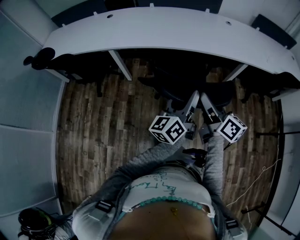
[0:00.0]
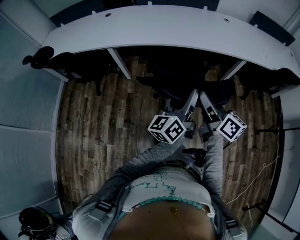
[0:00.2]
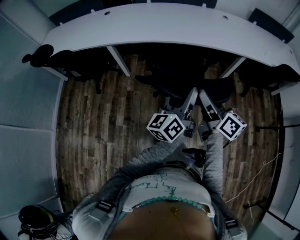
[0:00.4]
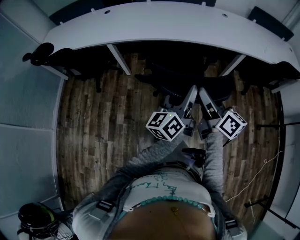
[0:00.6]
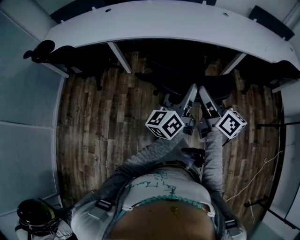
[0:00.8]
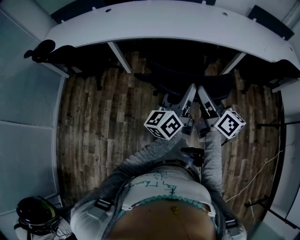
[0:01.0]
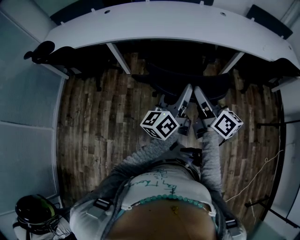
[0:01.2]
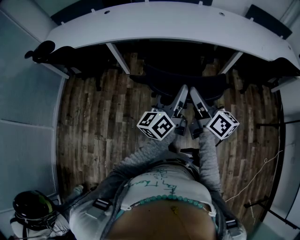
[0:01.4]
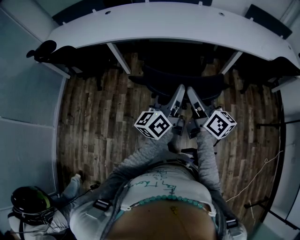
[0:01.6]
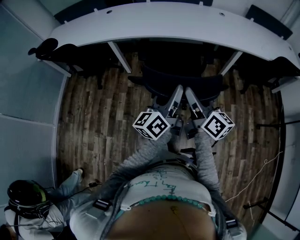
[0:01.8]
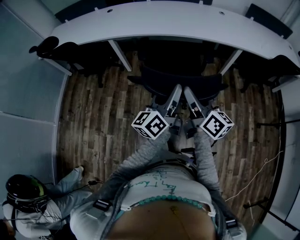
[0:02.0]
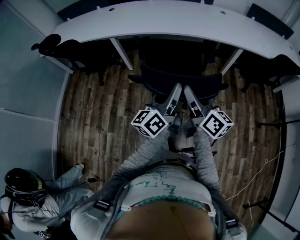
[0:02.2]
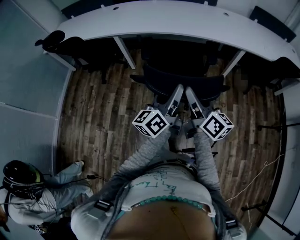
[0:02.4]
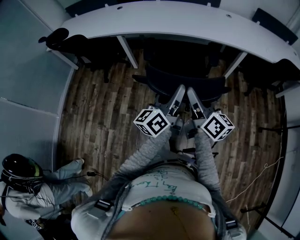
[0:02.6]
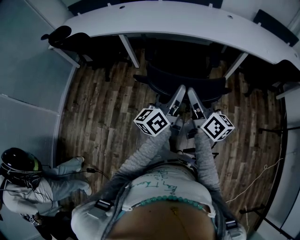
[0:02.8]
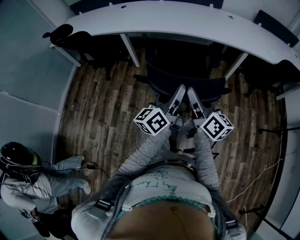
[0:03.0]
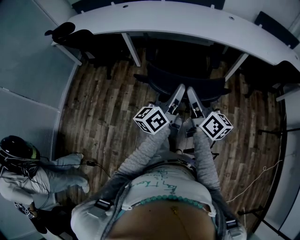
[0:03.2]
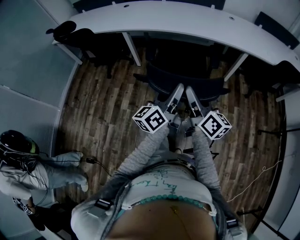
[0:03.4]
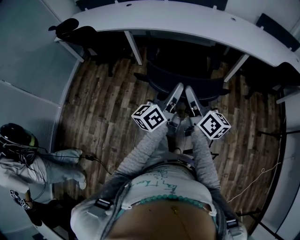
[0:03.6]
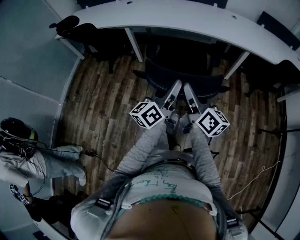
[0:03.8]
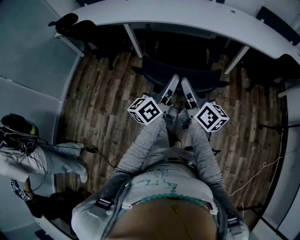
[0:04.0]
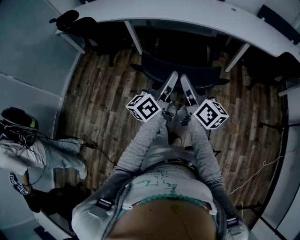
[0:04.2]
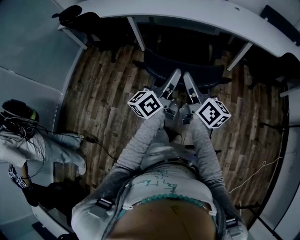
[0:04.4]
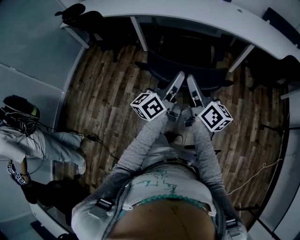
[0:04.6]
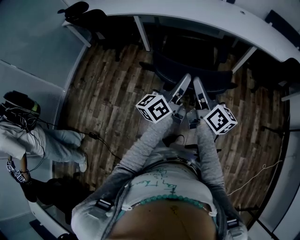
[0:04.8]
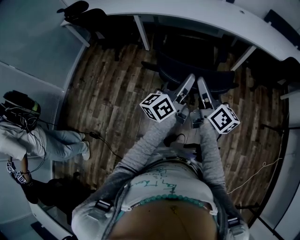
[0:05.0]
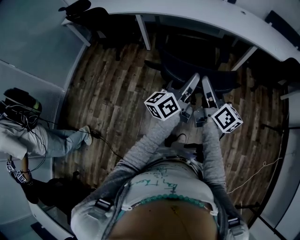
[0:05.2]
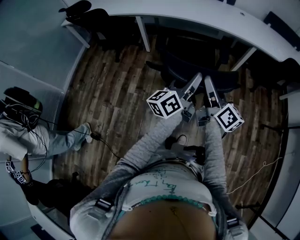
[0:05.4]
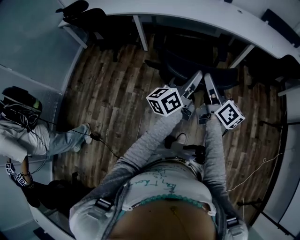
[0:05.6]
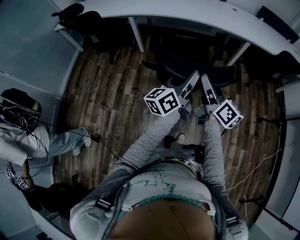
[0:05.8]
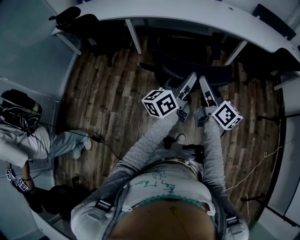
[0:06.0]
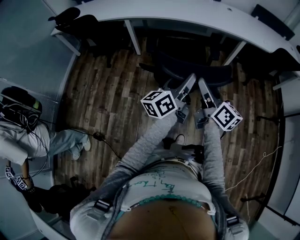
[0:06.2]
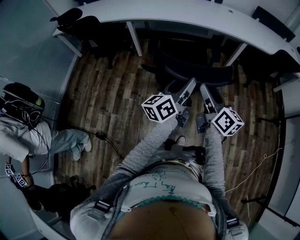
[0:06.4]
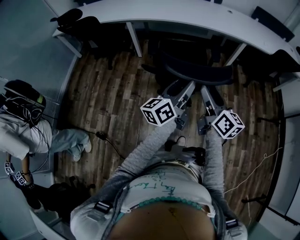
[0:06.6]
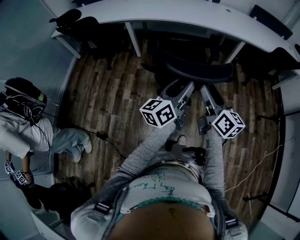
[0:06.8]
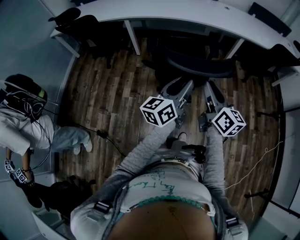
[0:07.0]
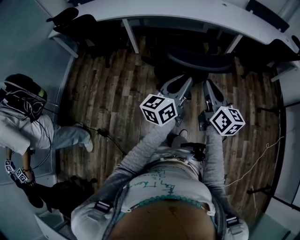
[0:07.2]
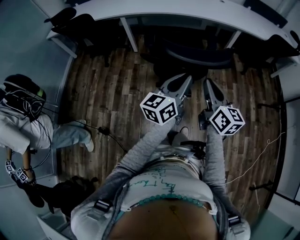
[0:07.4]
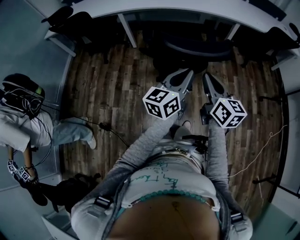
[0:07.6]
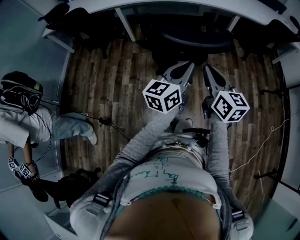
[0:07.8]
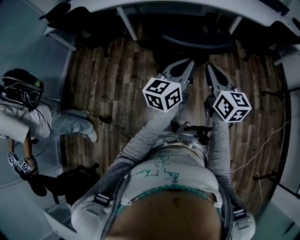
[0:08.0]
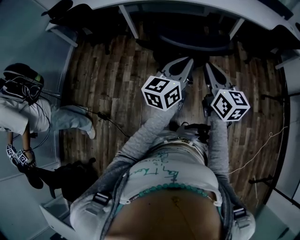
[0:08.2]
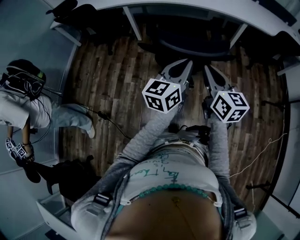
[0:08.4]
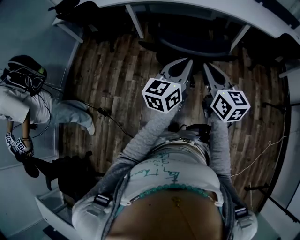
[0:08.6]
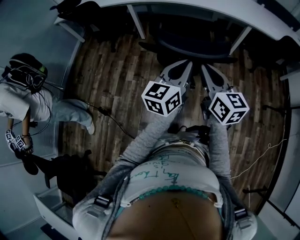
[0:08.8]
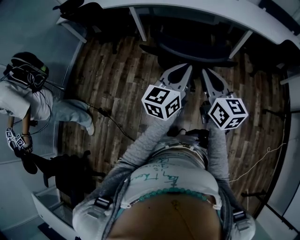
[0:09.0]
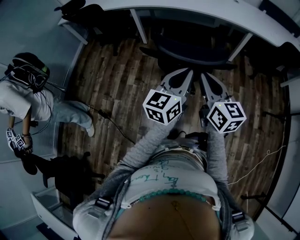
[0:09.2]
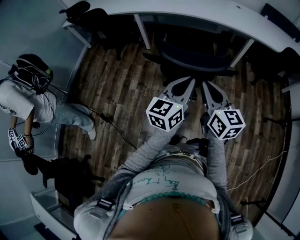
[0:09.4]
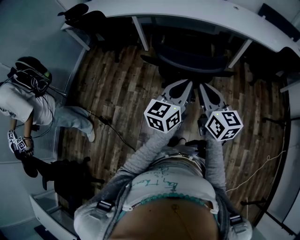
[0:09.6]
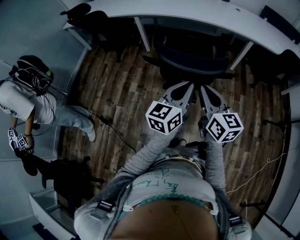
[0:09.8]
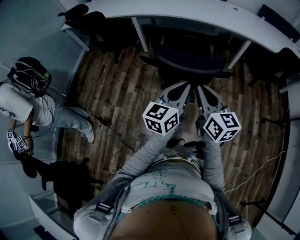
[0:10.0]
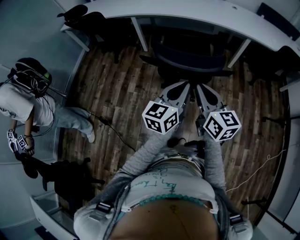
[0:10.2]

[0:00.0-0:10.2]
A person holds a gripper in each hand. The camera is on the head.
0:00.0 to 0:01.4: Both grippers travel together backward, about 10 cm.
0:01.4 to 0:03.0: The two grippers go approximately 10 cm backward.
0:03.0 to 0:04.4: Both grippers move backward, roughly 5 cm.
0:04.4 to 0:05.8: There are only small adjustments of the grippers.
0:05.8 to 0:07.2: Both grippers travel together backward, some 10 cm. The right gripper closes up; the left gripper closes its fingers.
0:07.2 to 0:08.8: The grippers stay close to where they were, moving slightly.
0:08.8 to 0:10.2: The grippers stay close to where they were, moving slightly.

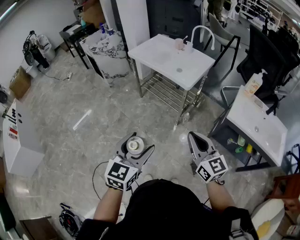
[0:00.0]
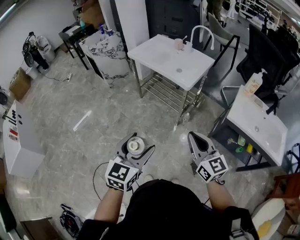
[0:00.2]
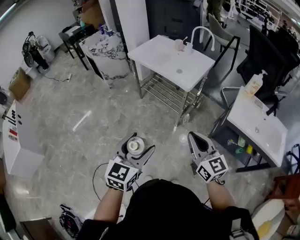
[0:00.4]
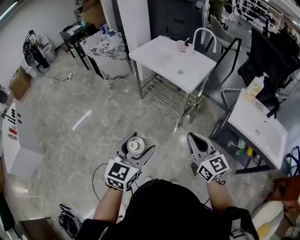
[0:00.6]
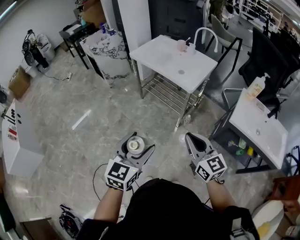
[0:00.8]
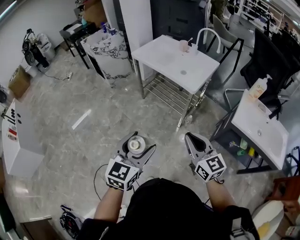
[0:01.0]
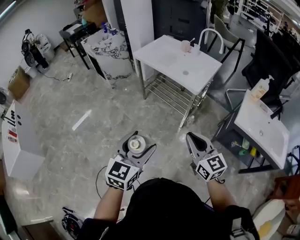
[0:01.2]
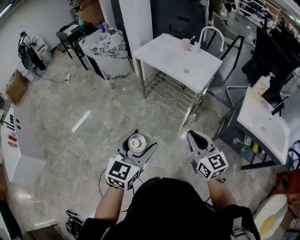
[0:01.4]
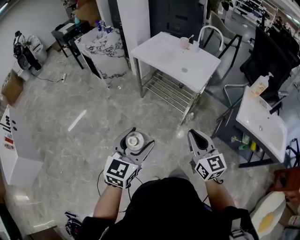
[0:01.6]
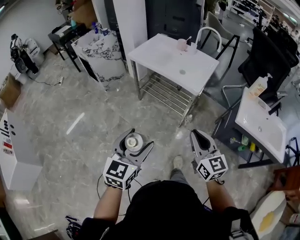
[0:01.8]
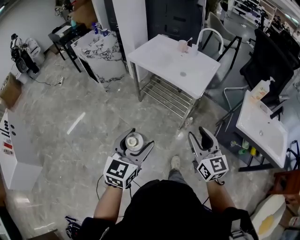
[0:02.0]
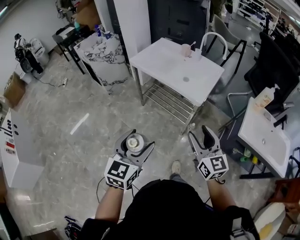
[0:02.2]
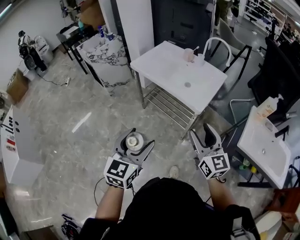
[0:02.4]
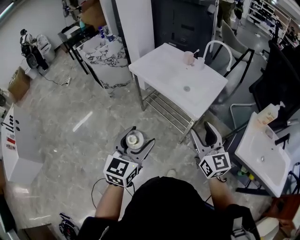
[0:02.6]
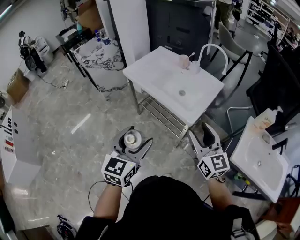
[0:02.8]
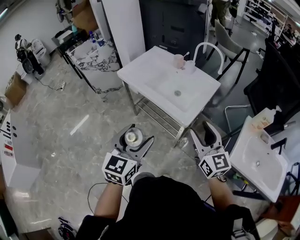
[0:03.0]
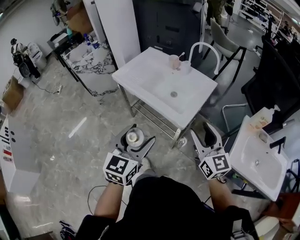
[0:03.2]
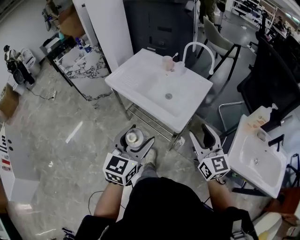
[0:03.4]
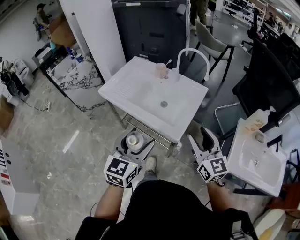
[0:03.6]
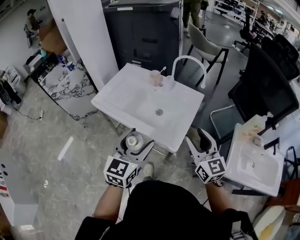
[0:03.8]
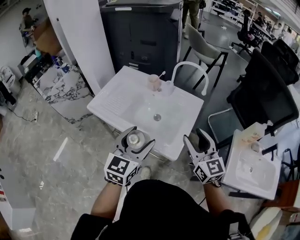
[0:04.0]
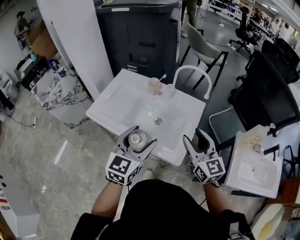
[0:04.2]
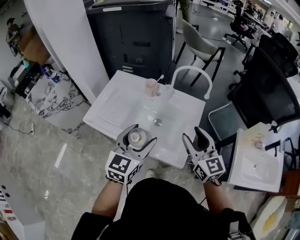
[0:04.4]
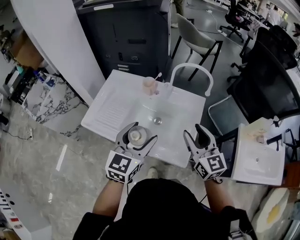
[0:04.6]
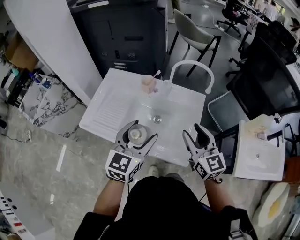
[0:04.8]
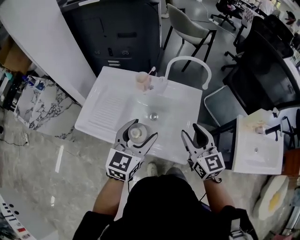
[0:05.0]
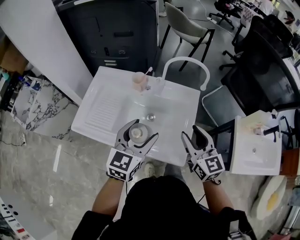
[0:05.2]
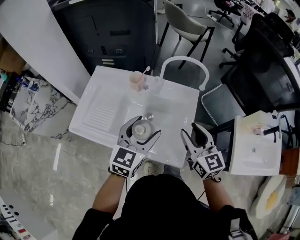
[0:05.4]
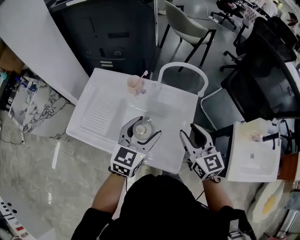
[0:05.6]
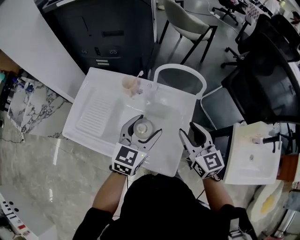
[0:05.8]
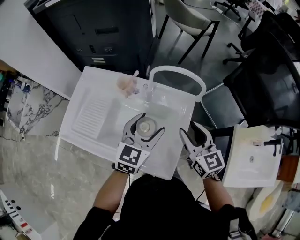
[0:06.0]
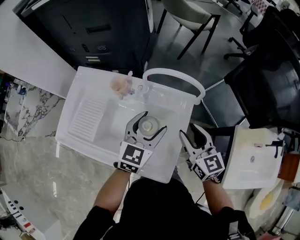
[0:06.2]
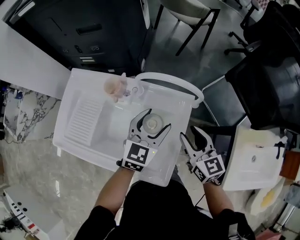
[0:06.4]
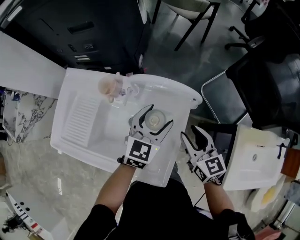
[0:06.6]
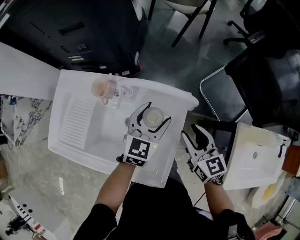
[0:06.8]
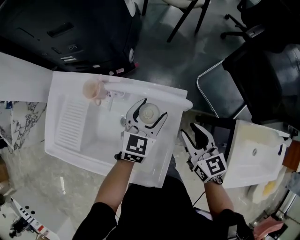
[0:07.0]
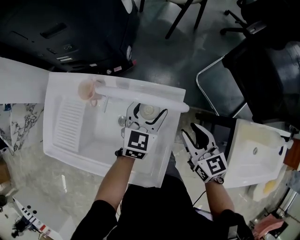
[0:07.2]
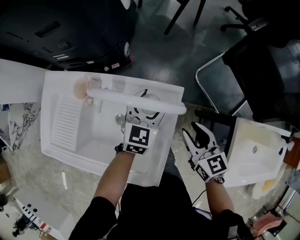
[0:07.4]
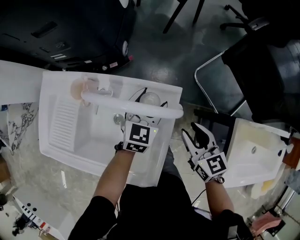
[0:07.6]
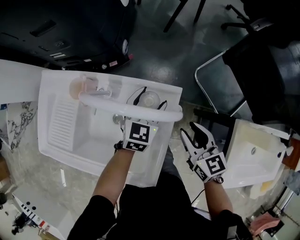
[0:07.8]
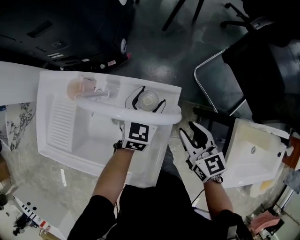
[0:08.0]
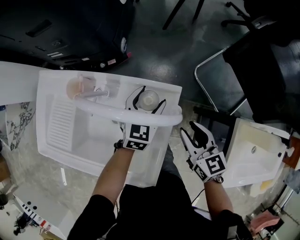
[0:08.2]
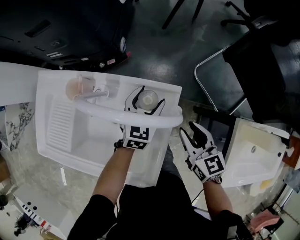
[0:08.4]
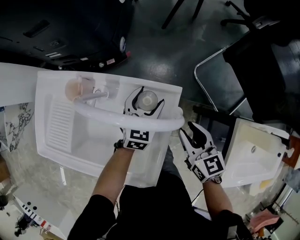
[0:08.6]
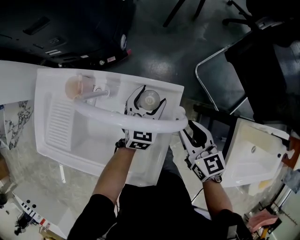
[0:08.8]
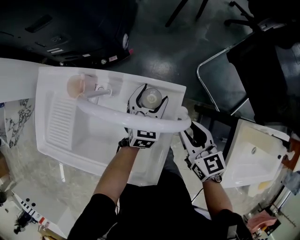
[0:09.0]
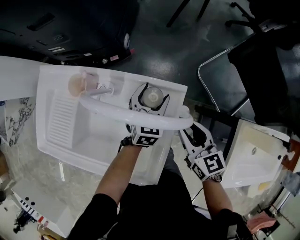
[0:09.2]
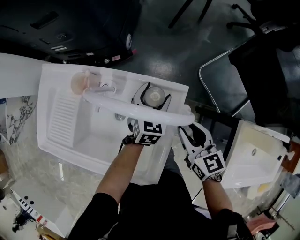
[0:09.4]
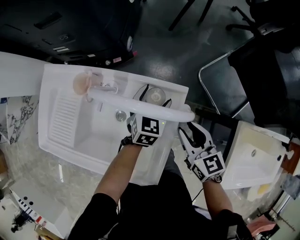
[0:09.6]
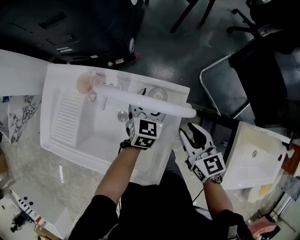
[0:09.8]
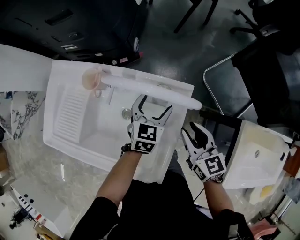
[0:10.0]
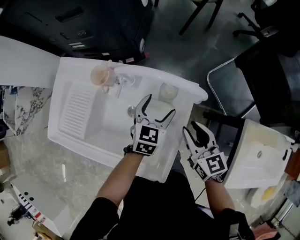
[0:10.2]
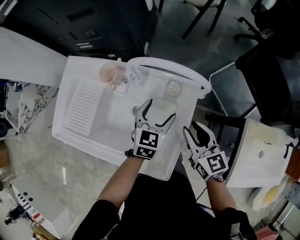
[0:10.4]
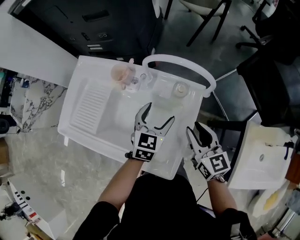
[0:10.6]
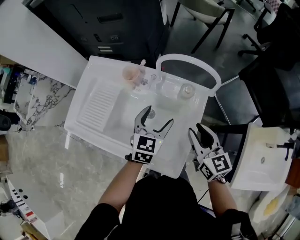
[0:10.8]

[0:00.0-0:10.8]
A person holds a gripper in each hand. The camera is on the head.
0:00.0 to 0:01.6: Both grippers move to the left and forward, some 10 cm.
0:01.6 to 0:03.0: The grippers both shift forward and to the right by approximately 30 cm. The right gripper opens.
0:03.0 to 0:04.6: Both grippers move forward, about 30 cm. The left gripper changes its angle by approximately 20 degrees. Meanwhile the right gripper swivels roughly 20 degrees.
0:04.6 to 0:06.2: The left gripper goes approximately 25 cm forward, to the right and downward. The right gripper moves forward, downward and to the right, about 15 cm.
0:06.2 to 0:07.8: The right gripper goes roughly 15 cm downward and to the right; the left gripper travels downward, forward and to the right by approximately 20 cm.
0:07.8 to 0:09.2: The grippers move only a little.
0:09.2 to 0:10.8: The right gripper shifts roughly 10 cm to the left, upward and backward. The left gripper travels backward, to the left and upward by some 20 cm.

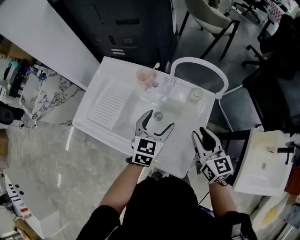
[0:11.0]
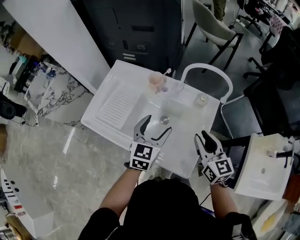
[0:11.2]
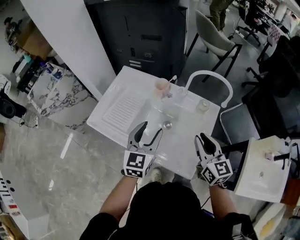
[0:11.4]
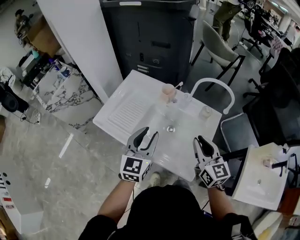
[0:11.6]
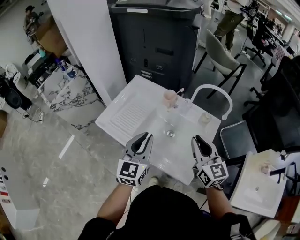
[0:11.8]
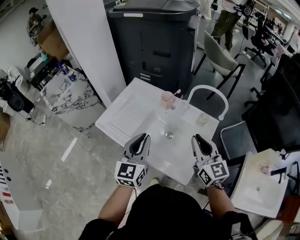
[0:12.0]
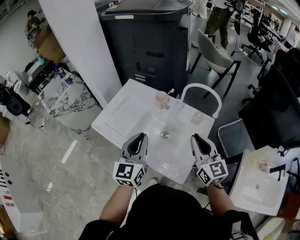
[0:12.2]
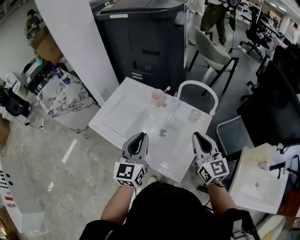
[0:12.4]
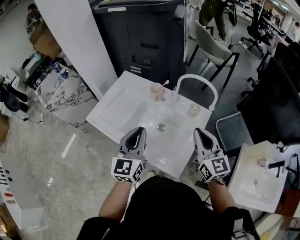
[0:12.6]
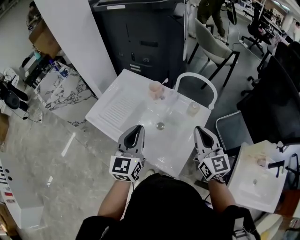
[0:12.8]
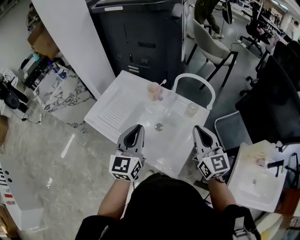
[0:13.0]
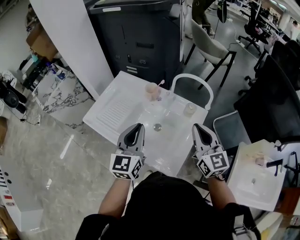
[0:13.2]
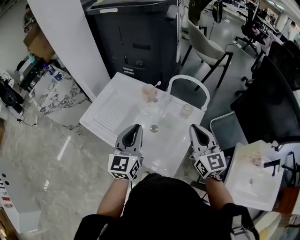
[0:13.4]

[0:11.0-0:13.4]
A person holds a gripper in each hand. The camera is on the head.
0:11.0 to 0:12.2: The right gripper is displaced upward and to the left by some 15 cm. The left gripper shifts about 20 cm upward, to the left and backward, changes its angle by about 30 degrees, and closes its fingers.
0:12.2 to 0:13.4: The grippers move only a little.
